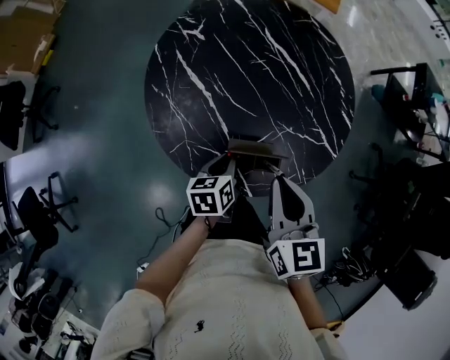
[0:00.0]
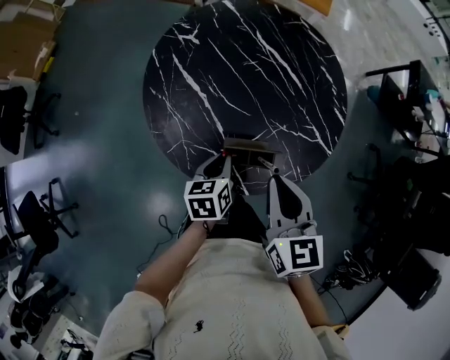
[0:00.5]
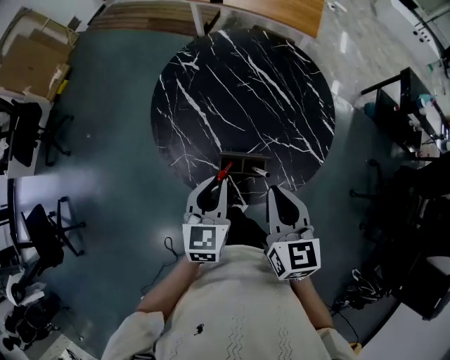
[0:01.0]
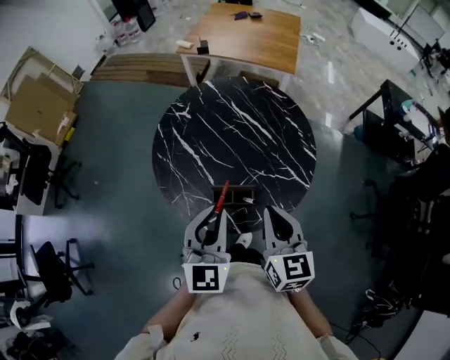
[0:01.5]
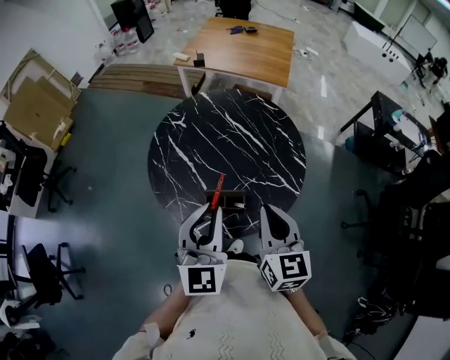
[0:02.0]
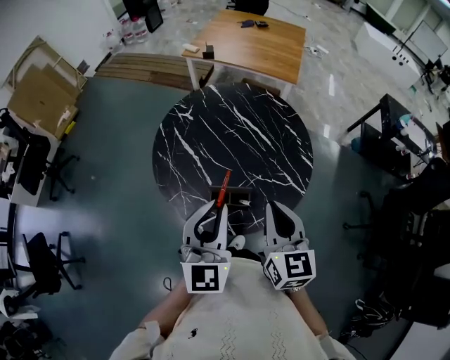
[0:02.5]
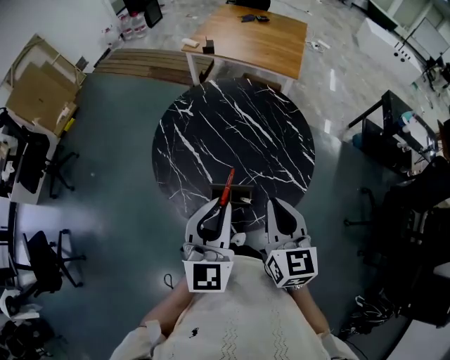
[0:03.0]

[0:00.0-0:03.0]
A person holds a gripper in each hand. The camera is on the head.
0:00.0 to 0:01.5: The left gripper is displaced upward by roughly 30 cm, and rolls clockwise, seen from behind, by some 60 degrees, while the right gripper travels to the right, upward and backward by some 15 cm.
0:01.5 to 0:03.0: The grippers stay close to where they were, moving slightly.

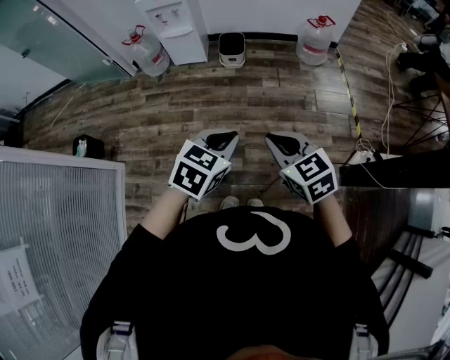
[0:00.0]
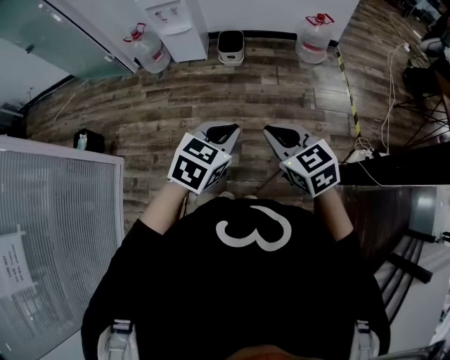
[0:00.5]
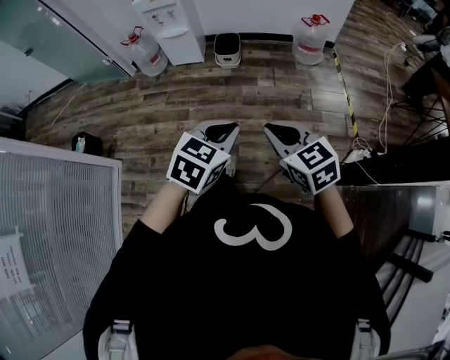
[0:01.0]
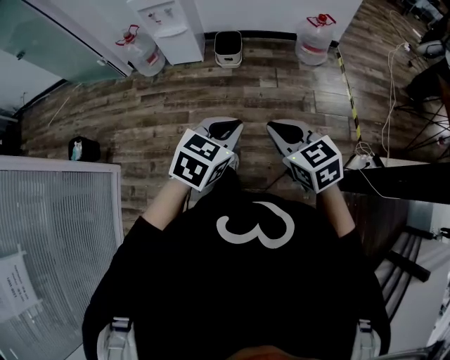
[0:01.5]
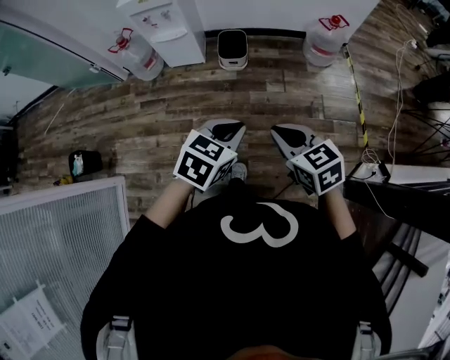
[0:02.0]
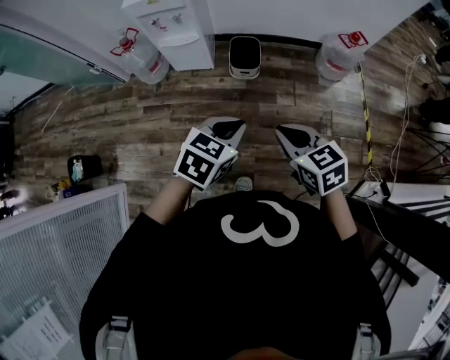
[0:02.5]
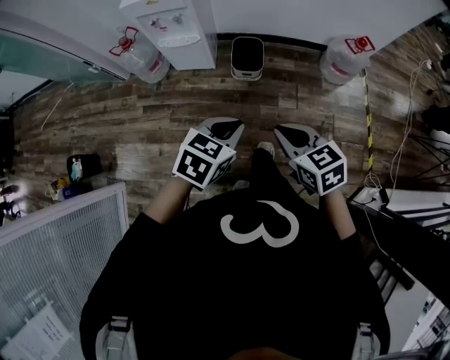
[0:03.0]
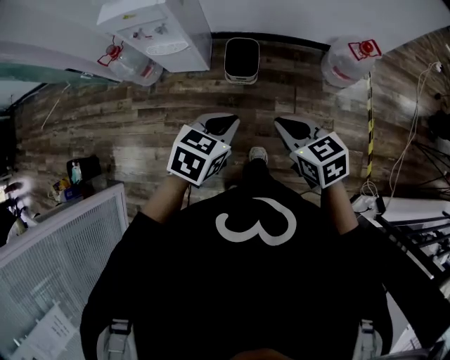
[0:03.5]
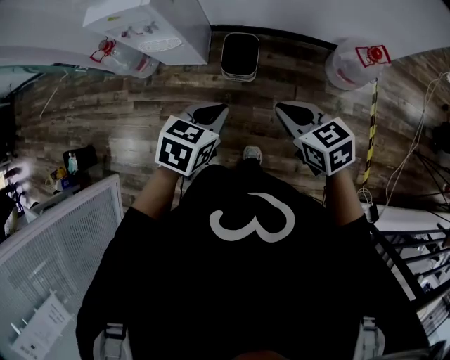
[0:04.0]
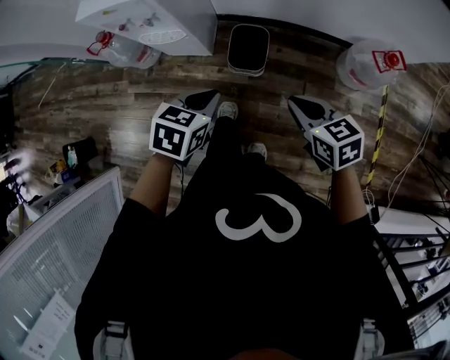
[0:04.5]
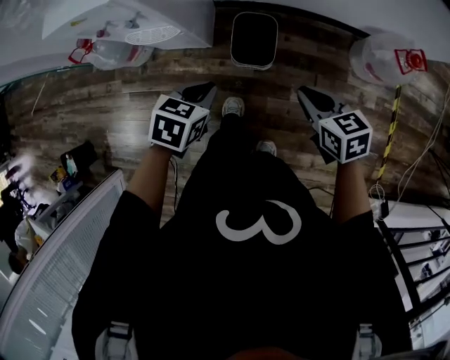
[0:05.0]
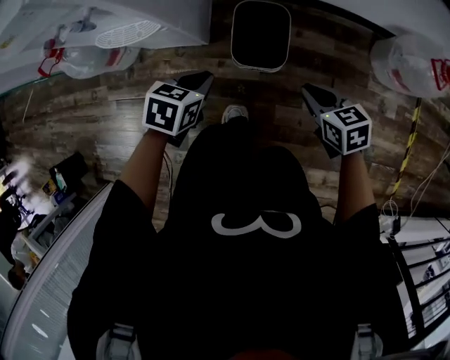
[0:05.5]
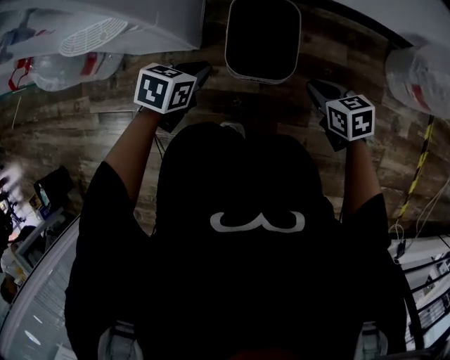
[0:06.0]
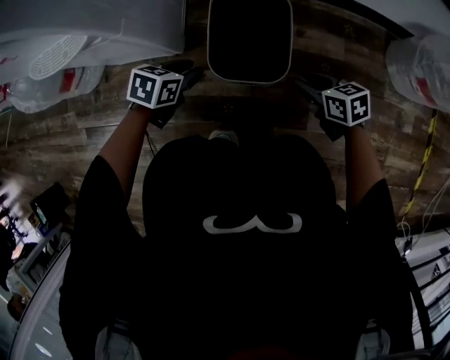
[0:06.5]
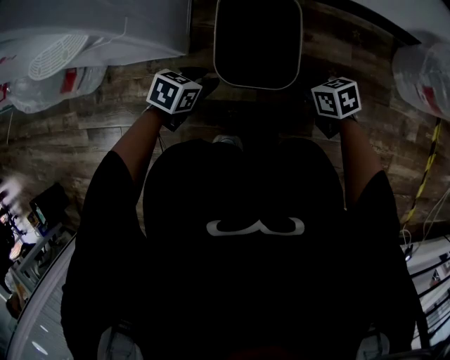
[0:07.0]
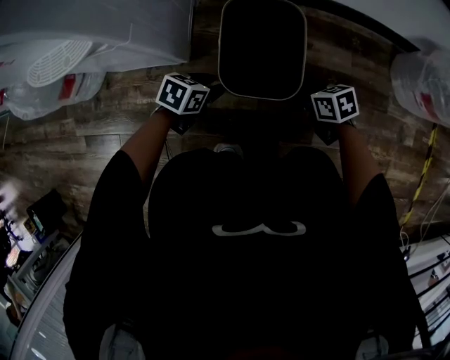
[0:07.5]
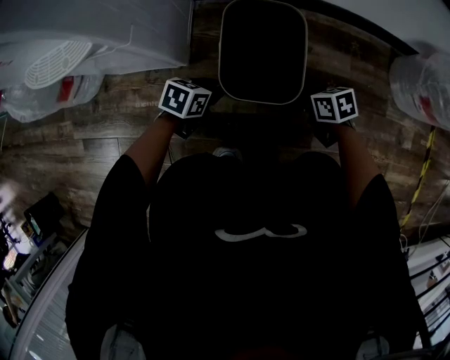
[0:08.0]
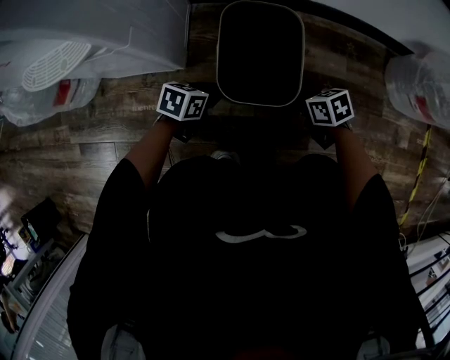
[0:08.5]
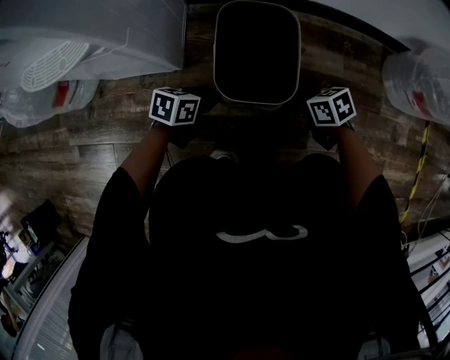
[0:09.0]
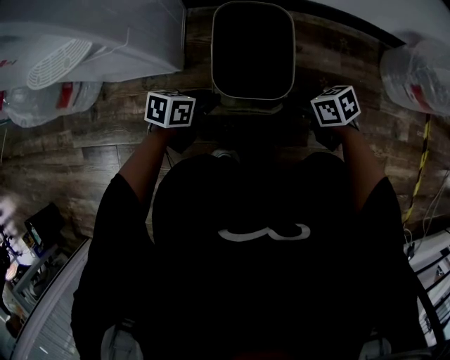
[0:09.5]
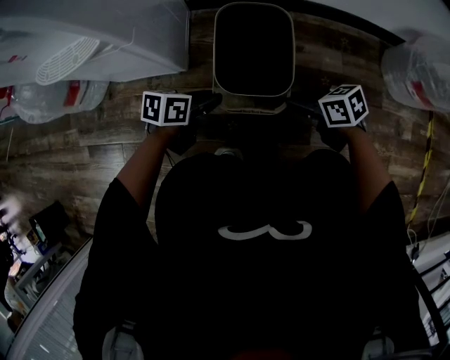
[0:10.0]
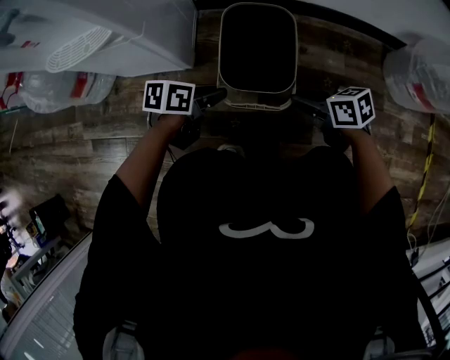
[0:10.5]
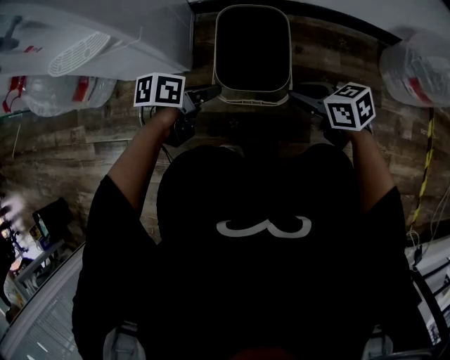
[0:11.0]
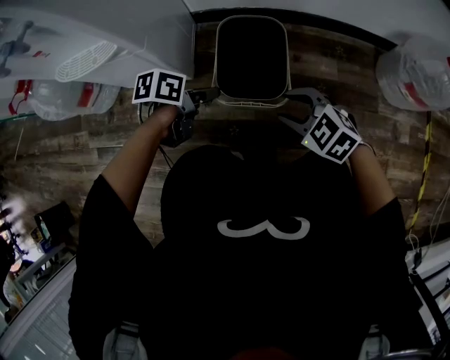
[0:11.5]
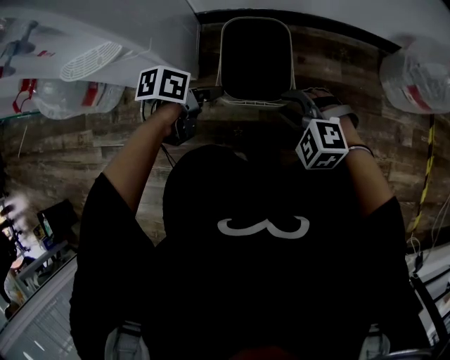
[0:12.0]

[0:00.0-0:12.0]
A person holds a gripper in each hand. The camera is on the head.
0:00.0 to 0:02.0: Both grippers move forward, approximately 25 cm.
0:02.0 to 0:04.0: The grippers both shift forward by some 40 cm.
0:04.0 to 0:06.0: The left gripper heads downward and forward, covering about 60 cm, while the right gripper is displaced downward by approximately 60 cm.
0:06.0 to 0:08.0: The two grippers go roughly 15 cm downward. The left gripper opens its fingers. The right gripper opens.
0:08.0 to 0:10.0: Both grippers travel together upward, about 10 cm.
0:10.0 to 0:12.0: The grippers both shift upward by about 10 cm. The right gripper rolls counterclockwise, seen from behind, by some 70 degrees.

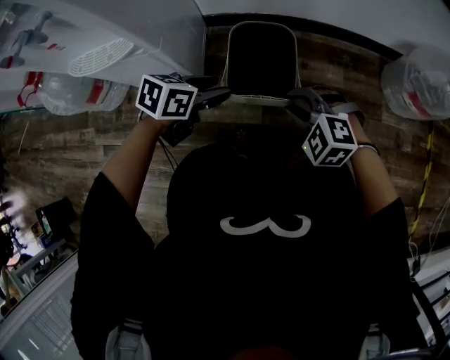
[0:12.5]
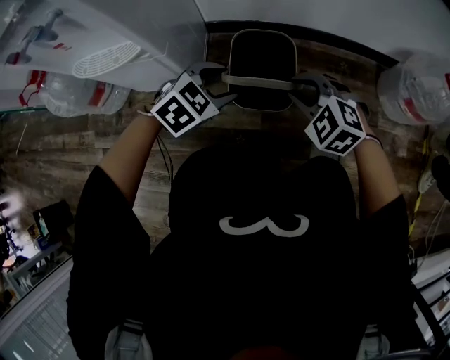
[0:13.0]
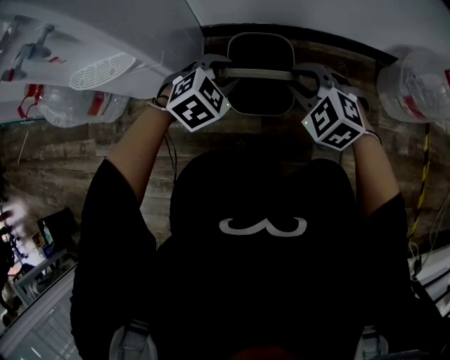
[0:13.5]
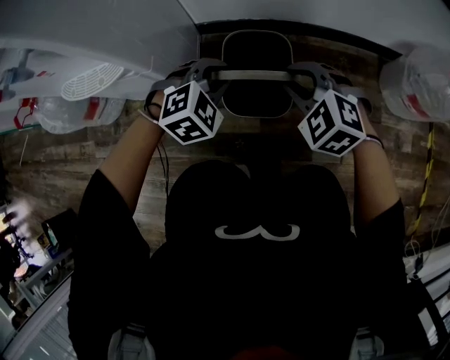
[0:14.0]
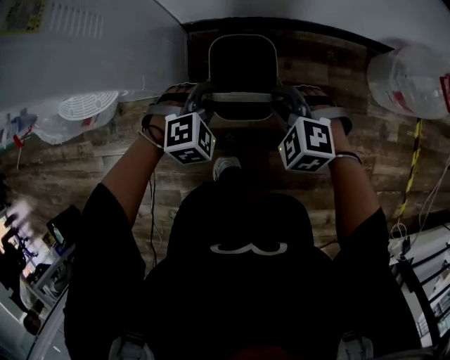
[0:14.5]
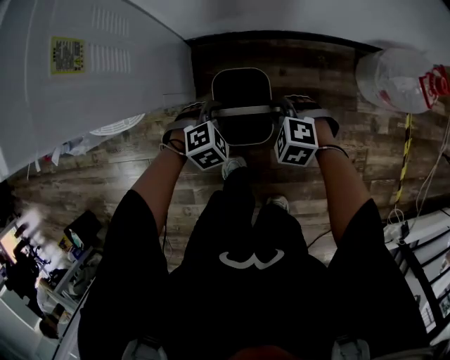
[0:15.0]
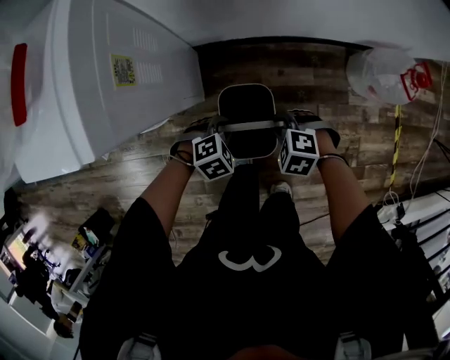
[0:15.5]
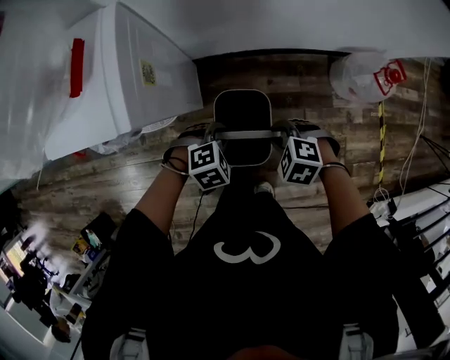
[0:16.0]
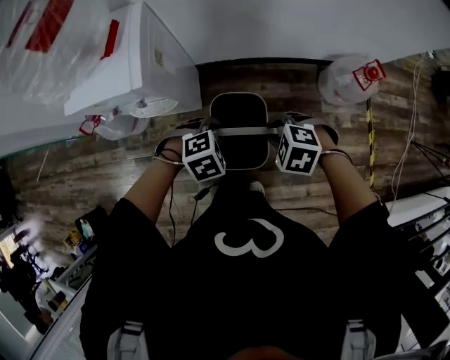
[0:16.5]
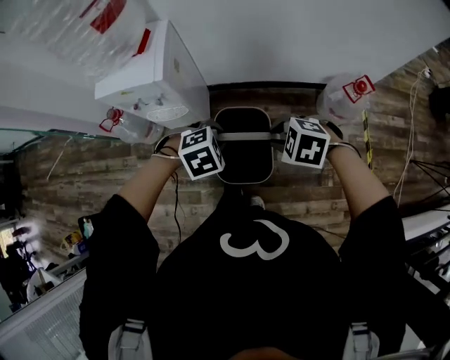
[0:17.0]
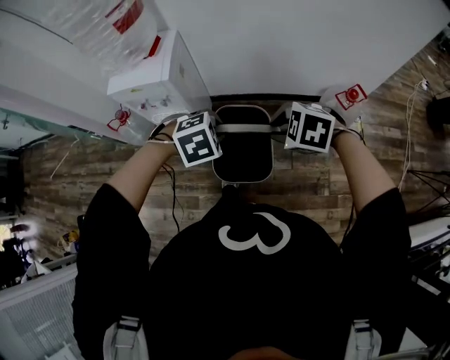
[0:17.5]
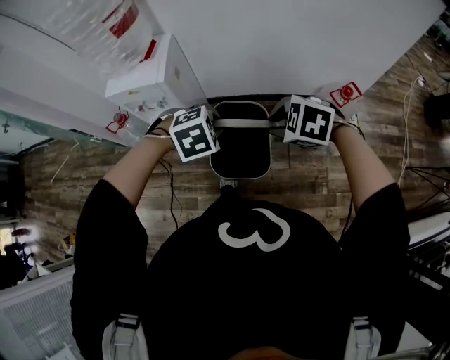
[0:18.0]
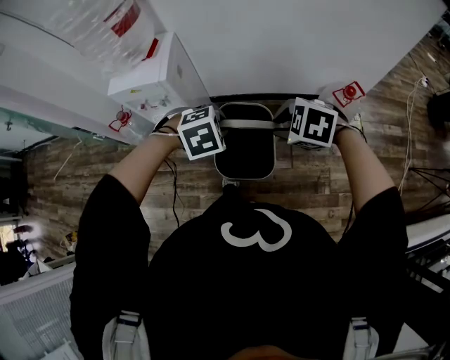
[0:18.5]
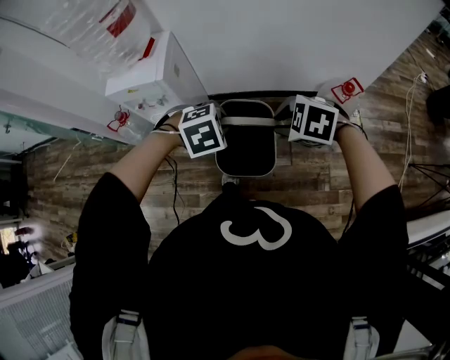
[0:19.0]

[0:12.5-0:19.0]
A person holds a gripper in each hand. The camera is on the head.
0:12.5 to 0:14.5: The right gripper travels forward and upward by some 10 cm, while the left gripper goes some 5 cm forward, rotates around the line of its fingers by roughly 60 degrees, clockwise from behind, and closes its fingers.
0:14.5 to 0:17.0: Both grippers move upward, approximately 50 cm. The right gripper changes its angle by approximately 20 degrees.
0:17.0 to 0:19.0: The two grippers go roughly 10 cm upward.

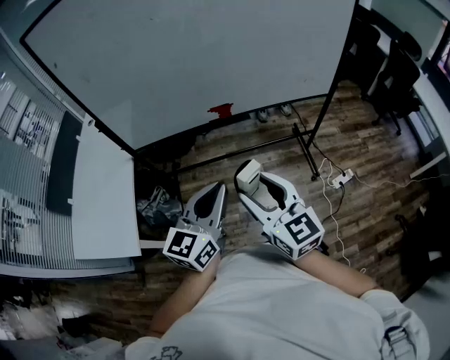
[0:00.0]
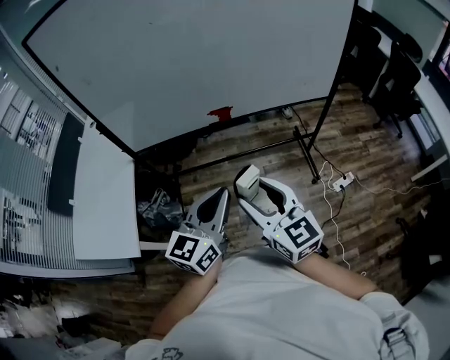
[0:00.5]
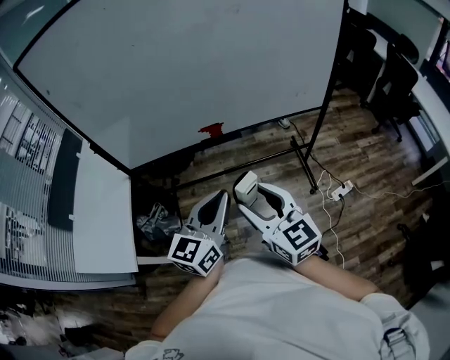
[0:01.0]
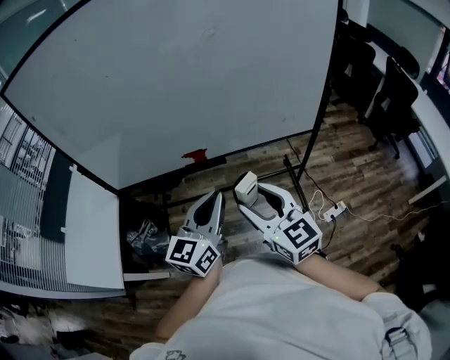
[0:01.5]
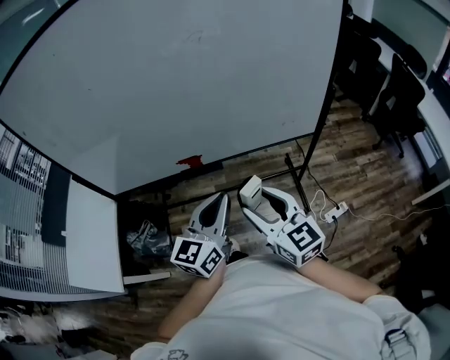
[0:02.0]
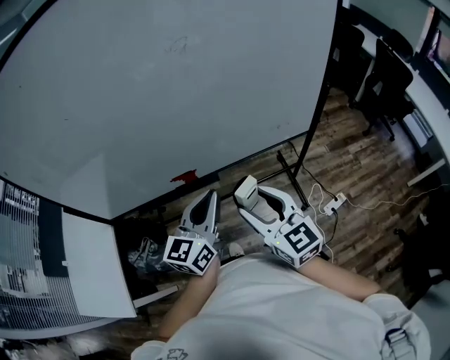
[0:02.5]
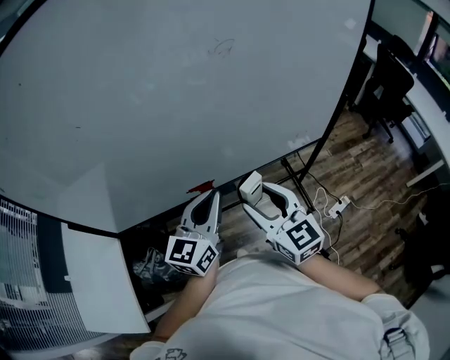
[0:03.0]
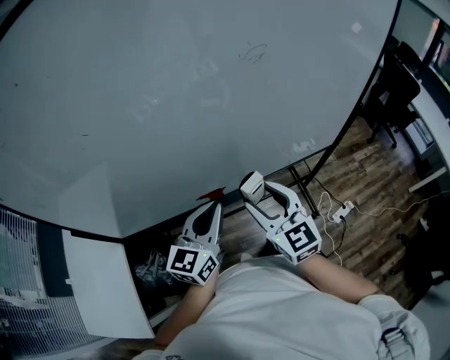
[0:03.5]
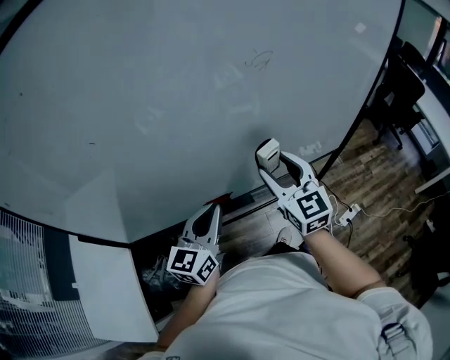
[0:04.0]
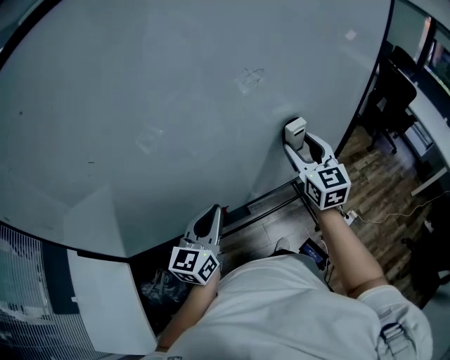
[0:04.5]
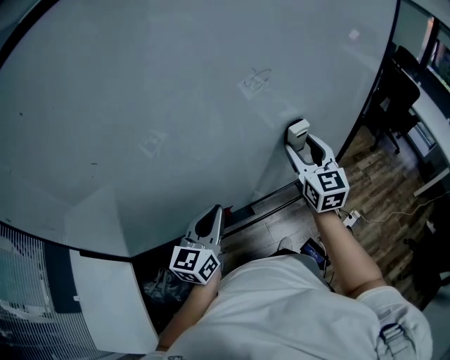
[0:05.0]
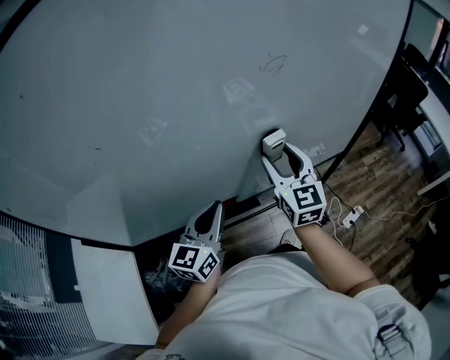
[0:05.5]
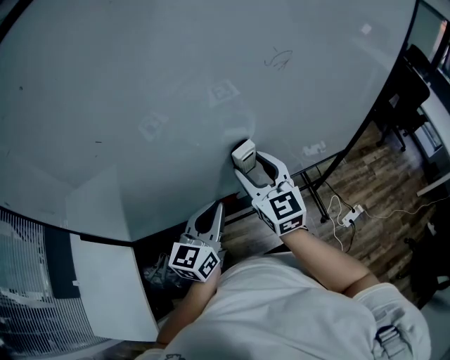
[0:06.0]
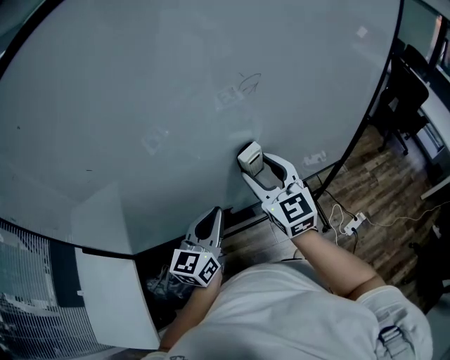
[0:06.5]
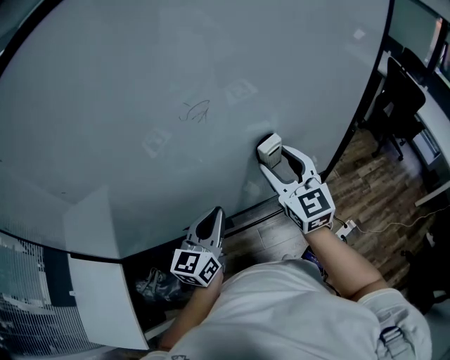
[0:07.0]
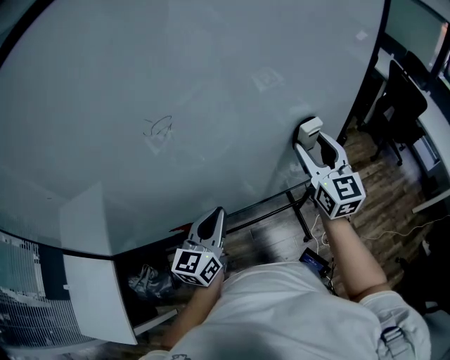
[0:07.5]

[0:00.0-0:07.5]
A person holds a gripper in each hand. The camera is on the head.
0:00.0 to 0:02.0: Both grippers travel together to the right and forward, about 25 cm.
0:02.0 to 0:04.0: The right gripper moves forward, approximately 25 cm, and turns by about 20 degrees. Meanwhile the left gripper moves forward and to the left, roughly 25 cm.
0:04.0 to 0:05.5: The right gripper travels to the right and back again, some 10 cm each way.
0:05.5 to 0:07.5: The two grippers go some 20 cm to the right.
